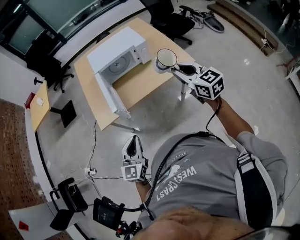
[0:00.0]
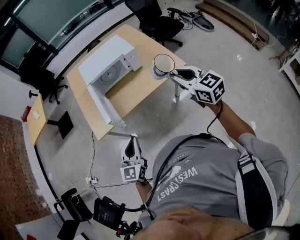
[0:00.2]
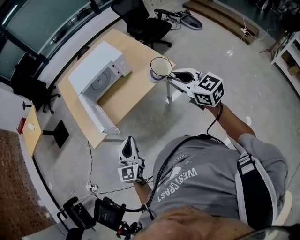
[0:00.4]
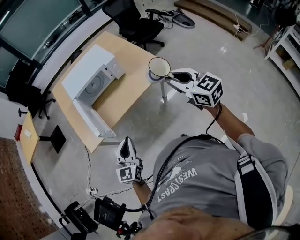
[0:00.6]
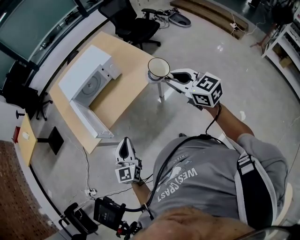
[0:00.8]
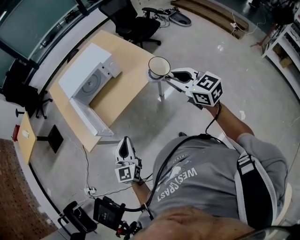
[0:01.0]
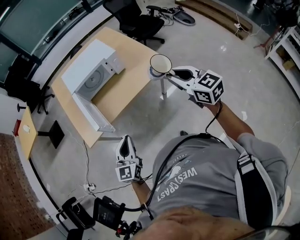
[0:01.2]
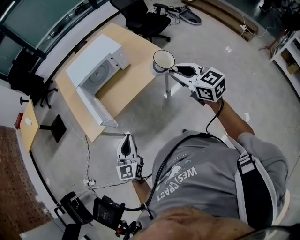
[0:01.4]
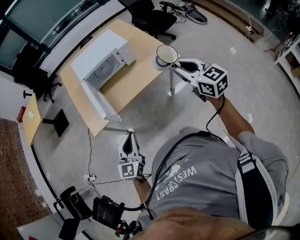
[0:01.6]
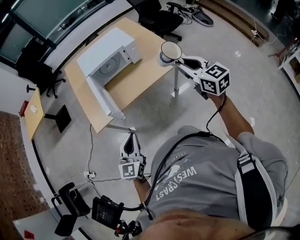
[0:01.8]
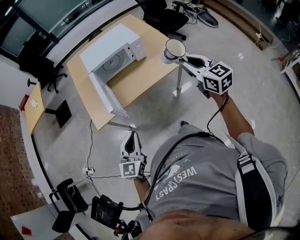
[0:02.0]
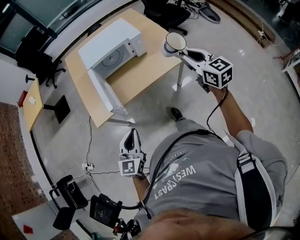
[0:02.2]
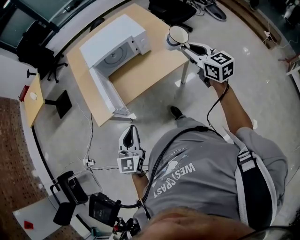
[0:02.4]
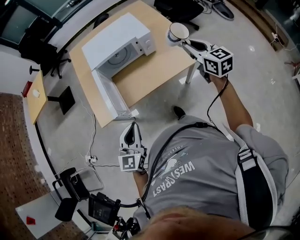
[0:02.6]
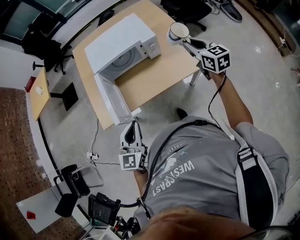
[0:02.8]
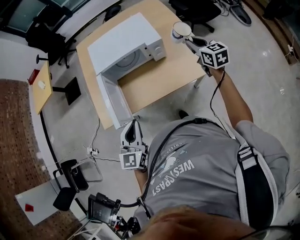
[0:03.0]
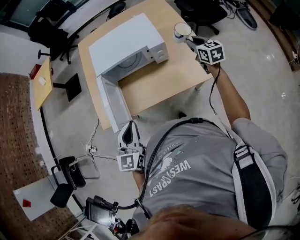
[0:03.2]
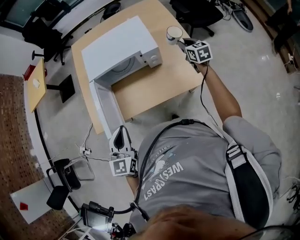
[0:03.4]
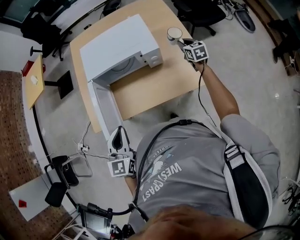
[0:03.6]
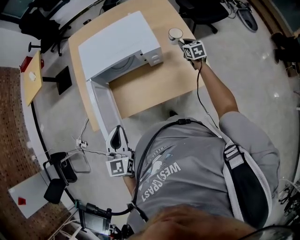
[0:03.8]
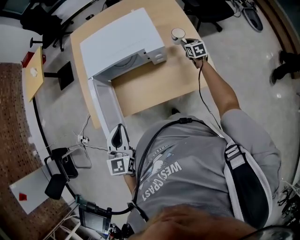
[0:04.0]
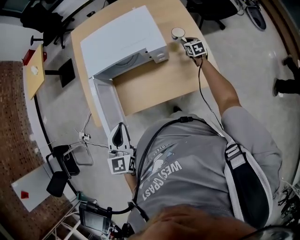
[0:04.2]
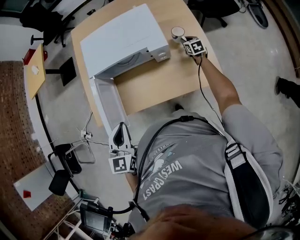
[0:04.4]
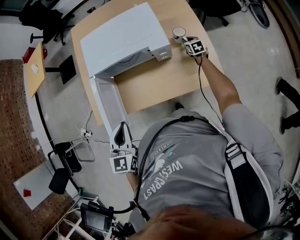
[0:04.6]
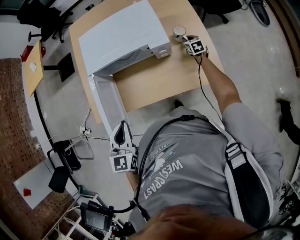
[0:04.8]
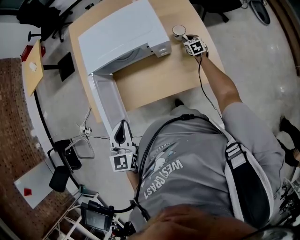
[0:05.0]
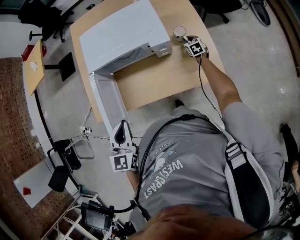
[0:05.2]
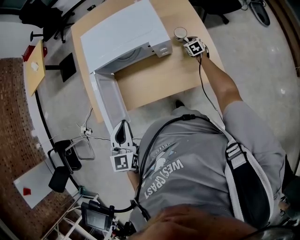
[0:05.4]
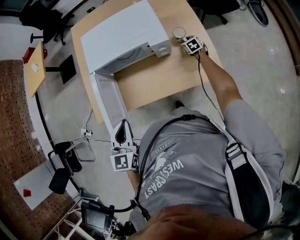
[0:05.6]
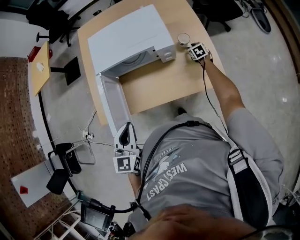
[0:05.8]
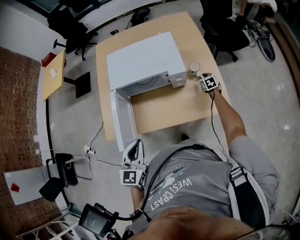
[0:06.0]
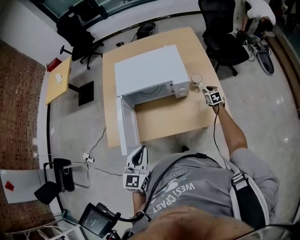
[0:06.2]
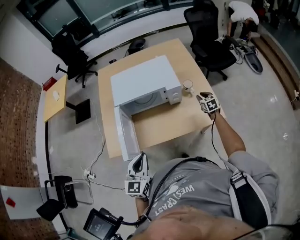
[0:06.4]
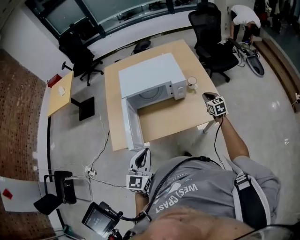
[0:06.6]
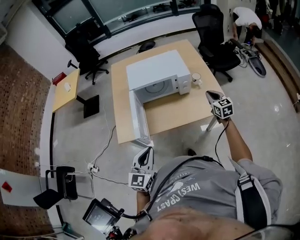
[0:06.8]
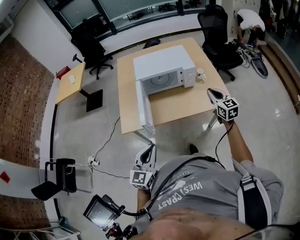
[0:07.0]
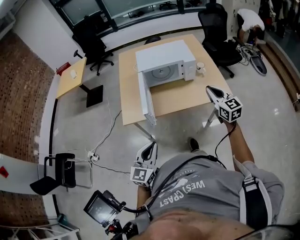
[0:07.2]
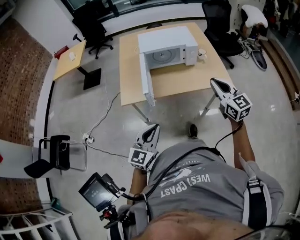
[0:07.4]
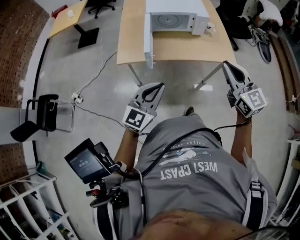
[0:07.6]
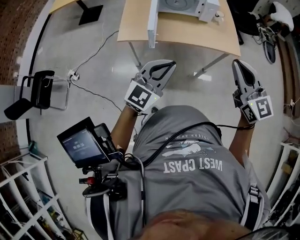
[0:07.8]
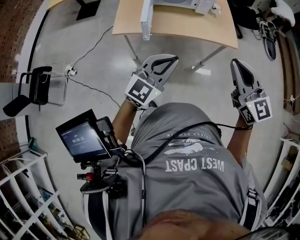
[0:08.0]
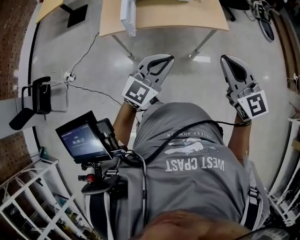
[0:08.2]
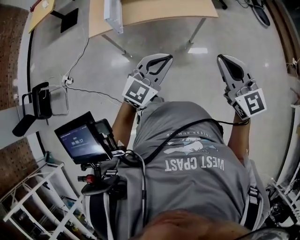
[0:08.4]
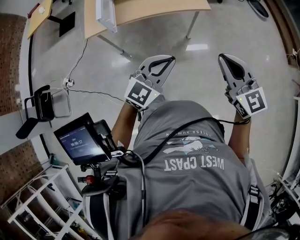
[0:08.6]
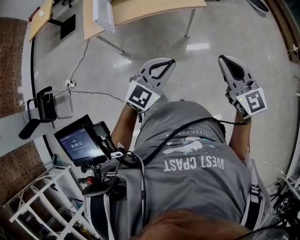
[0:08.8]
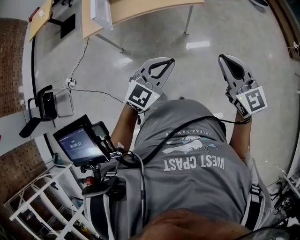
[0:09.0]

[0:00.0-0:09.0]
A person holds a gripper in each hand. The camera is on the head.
0:00.0 to 0:01.6: The right gripper is displaced to the right by roughly 5 cm.
0:01.6 to 0:03.0: The right gripper goes about 40 cm forward. The left gripper moves forward, some 20 cm.
0:03.0 to 0:04.4: The right gripper shifts some 40 cm downward and forward, and turns by roughly 20 degrees. The left gripper is displaced forward by approximately 15 cm.
0:04.4 to 0:06.0: The right gripper moves backward, approximately 5 cm.
0:06.0 to 0:07.6: The right gripper goes roughly 80 cm backward and upward, tilts its fingers some 50 degrees upward, and closes its fingers. Meanwhile the left gripper shifts some 35 cm backward, and changes its angle by roughly 20 degrees.
0:07.6 to 0:09.0: The left gripper is displaced to the right by approximately 20 cm, while the right gripper goes about 15 cm to the right and backward.

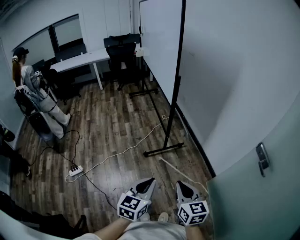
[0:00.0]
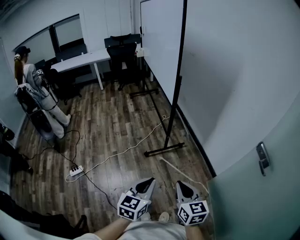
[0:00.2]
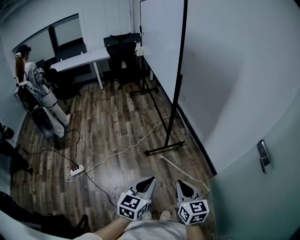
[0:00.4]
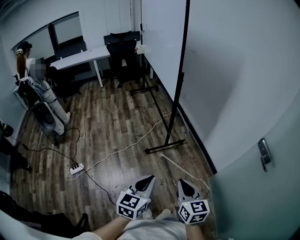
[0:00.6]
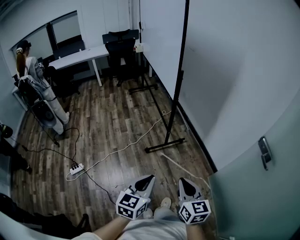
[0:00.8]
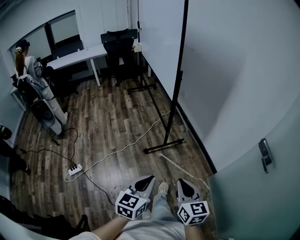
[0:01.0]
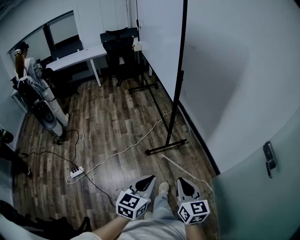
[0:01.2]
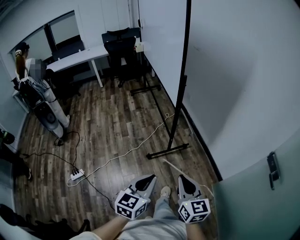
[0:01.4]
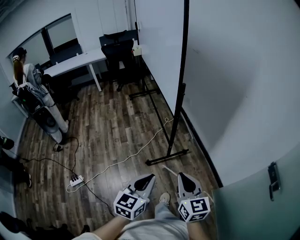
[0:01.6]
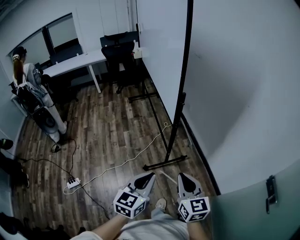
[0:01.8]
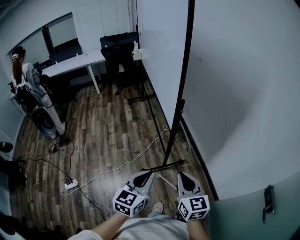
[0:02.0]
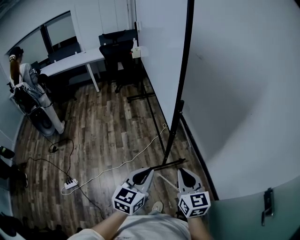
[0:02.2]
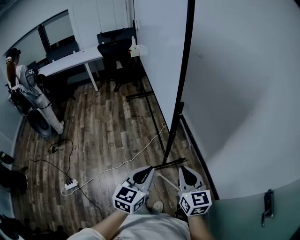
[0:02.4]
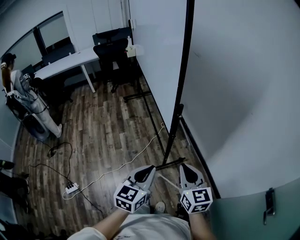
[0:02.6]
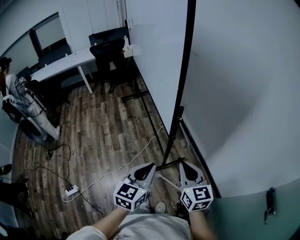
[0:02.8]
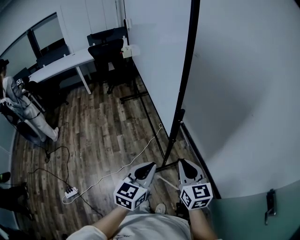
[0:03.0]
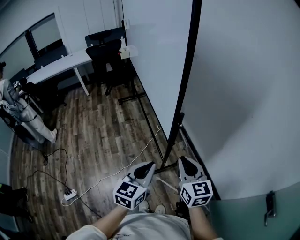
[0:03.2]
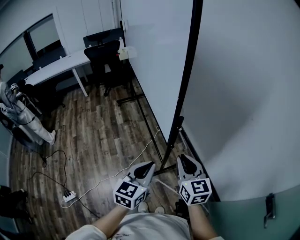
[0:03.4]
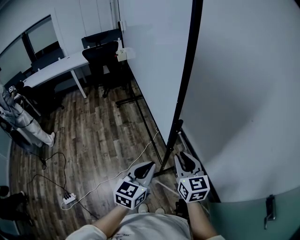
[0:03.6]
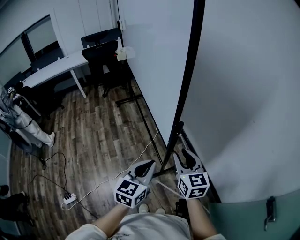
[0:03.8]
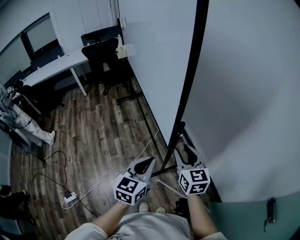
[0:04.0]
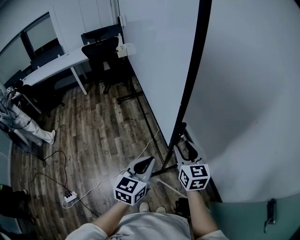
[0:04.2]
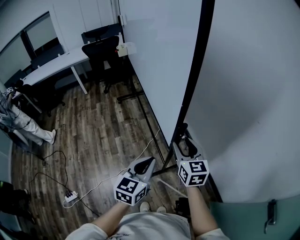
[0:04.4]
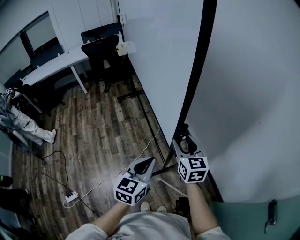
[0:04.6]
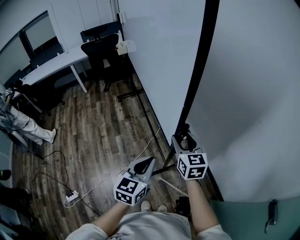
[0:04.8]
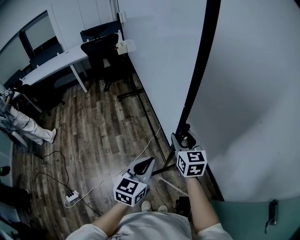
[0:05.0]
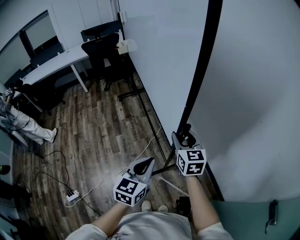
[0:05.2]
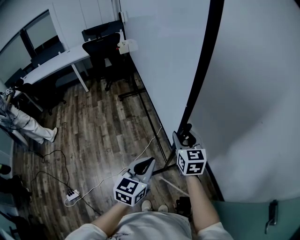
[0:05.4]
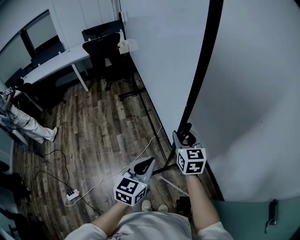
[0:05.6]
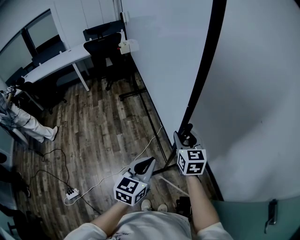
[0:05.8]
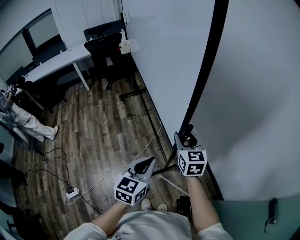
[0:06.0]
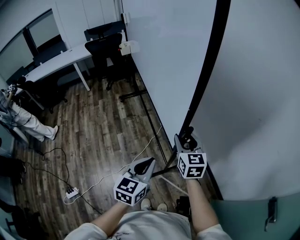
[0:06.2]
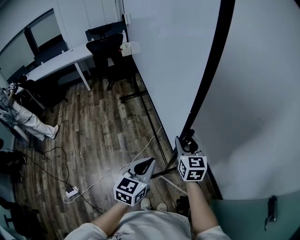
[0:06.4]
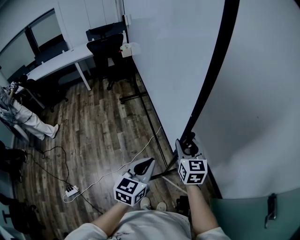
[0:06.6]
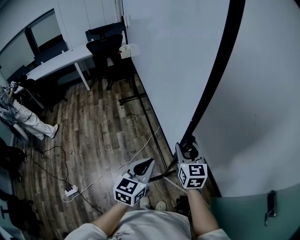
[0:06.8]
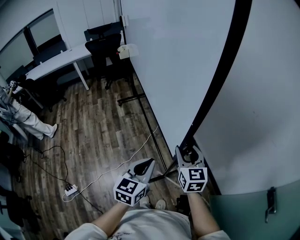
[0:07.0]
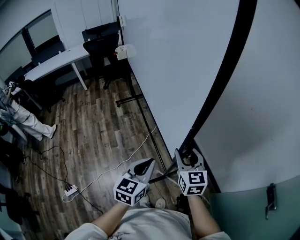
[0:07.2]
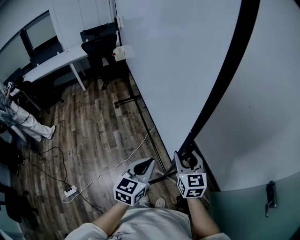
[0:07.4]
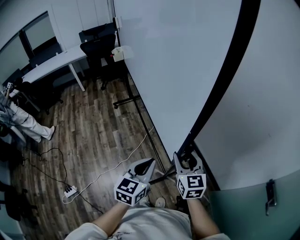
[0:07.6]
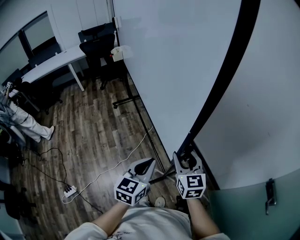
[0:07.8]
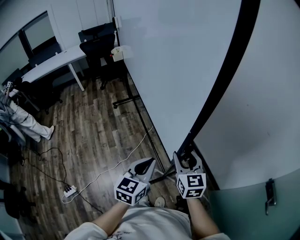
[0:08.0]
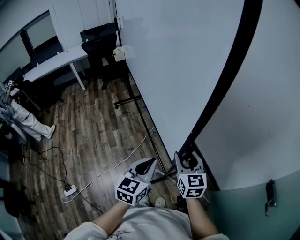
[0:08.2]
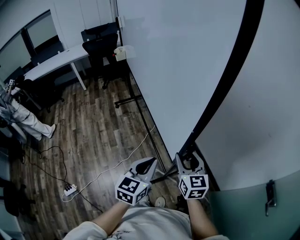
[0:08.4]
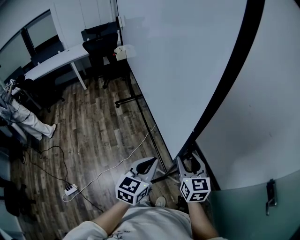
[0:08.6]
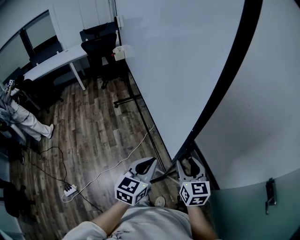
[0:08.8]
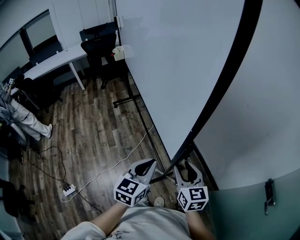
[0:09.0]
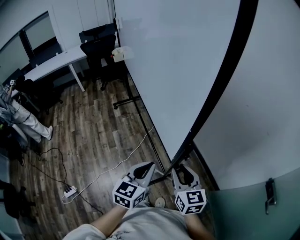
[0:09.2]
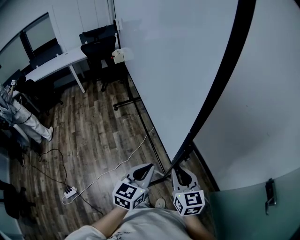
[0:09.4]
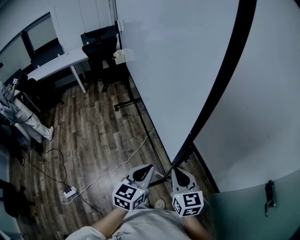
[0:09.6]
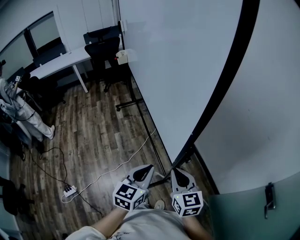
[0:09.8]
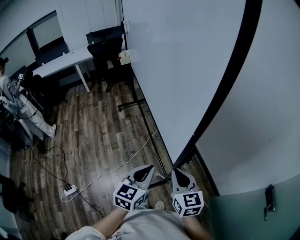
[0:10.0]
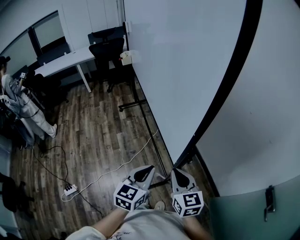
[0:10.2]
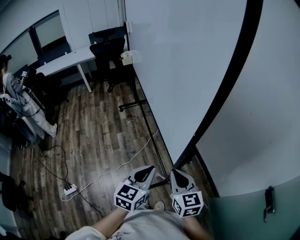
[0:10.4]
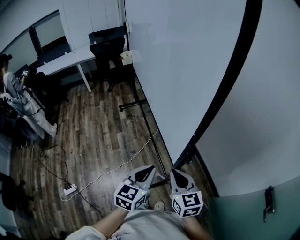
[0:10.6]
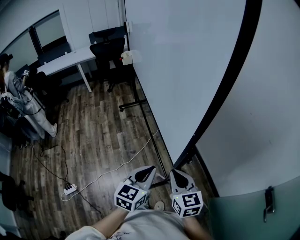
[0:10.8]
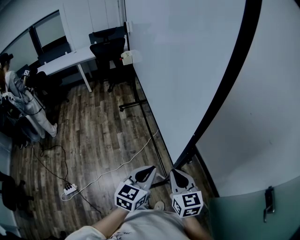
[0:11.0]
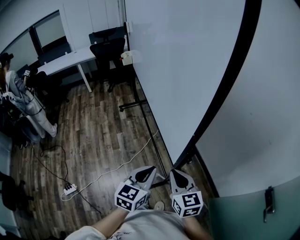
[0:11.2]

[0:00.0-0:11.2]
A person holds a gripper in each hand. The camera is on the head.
0:00.0 to 0:01.6: Both grippers travel together forward, roughly 20 cm.
0:01.6 to 0:03.2: Both grippers move forward, some 25 cm.
0:03.2 to 0:04.8: The right gripper goes some 15 cm forward, and opens its fingers. Meanwhile the left gripper moves forward, some 10 cm.
0:04.8 to 0:06.4: The grippers move only a little.
0:06.4 to 0:08.0: The left gripper is displaced backward by about 5 cm, while the right gripper heads backward, covering approximately 15 cm.
0:08.0 to 0:09.6: The right gripper shifts approximately 10 cm backward, and closes up.
0:09.6 to 0:11.2: The grippers move only a little.

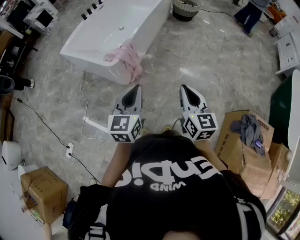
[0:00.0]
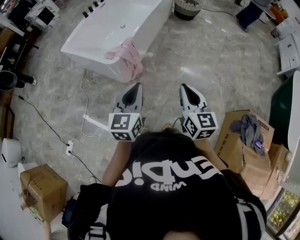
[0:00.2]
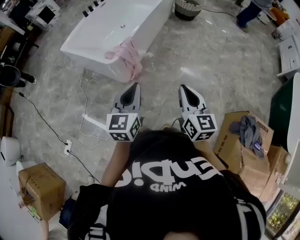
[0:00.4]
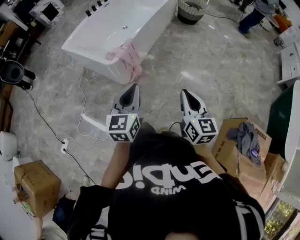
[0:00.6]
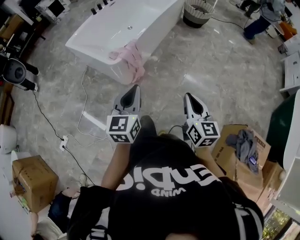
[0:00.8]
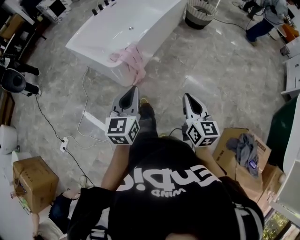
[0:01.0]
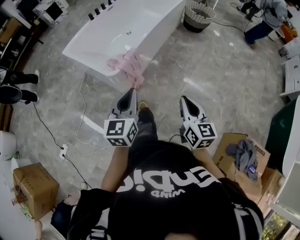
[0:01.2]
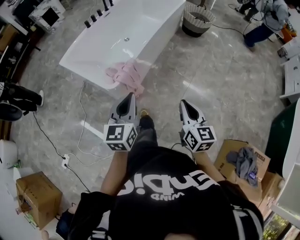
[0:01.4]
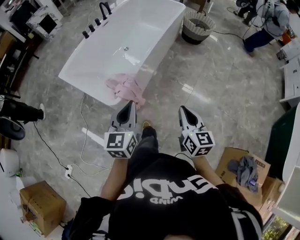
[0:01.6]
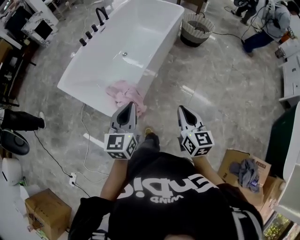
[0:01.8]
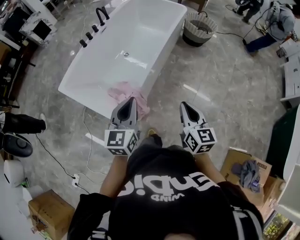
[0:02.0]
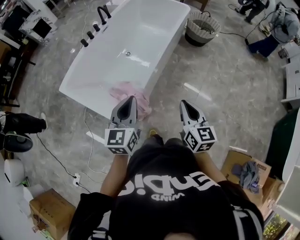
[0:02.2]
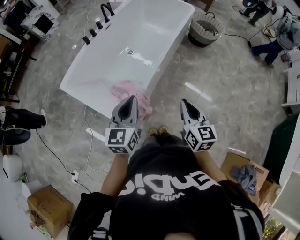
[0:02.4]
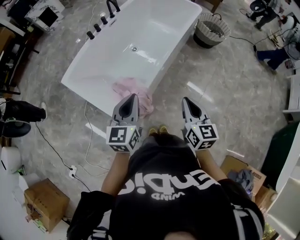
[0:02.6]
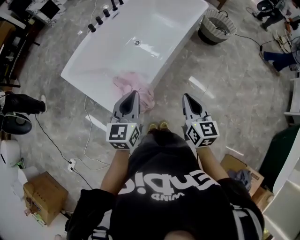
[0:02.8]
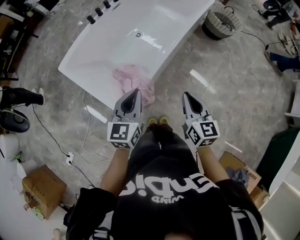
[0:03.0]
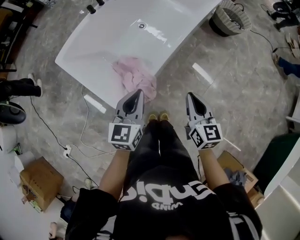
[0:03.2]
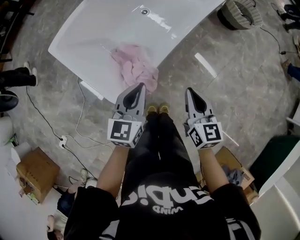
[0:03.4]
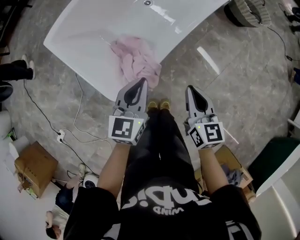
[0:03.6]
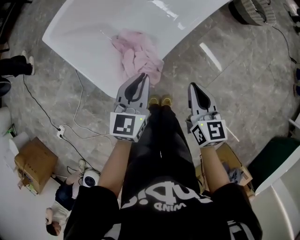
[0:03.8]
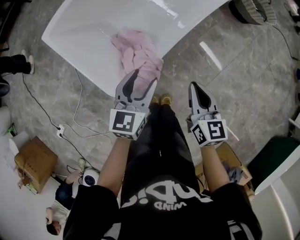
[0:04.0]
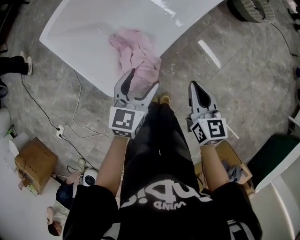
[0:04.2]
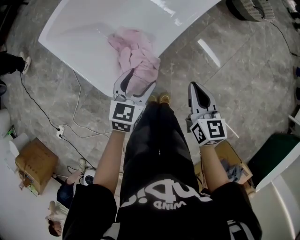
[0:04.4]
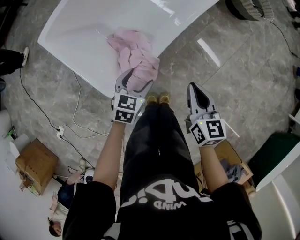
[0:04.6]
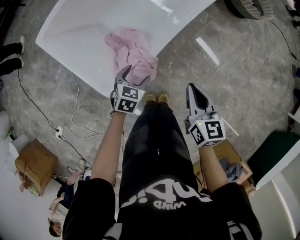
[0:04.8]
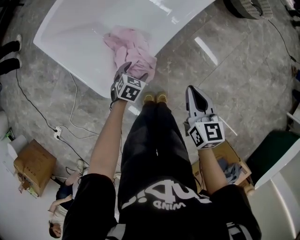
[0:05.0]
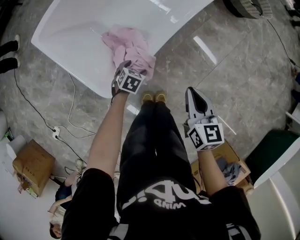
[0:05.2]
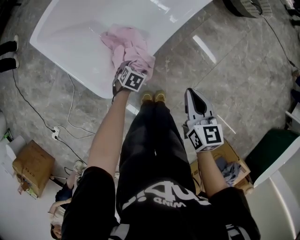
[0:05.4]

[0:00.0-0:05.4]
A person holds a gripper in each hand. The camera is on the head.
0:00.0 to 0:01.4: The two grippers go some 20 cm forward.
0:01.4 to 0:02.8: The two grippers go roughly 30 cm forward.
0:02.8 to 0:04.0: The grippers both shift downward by about 20 cm. The left gripper opens.
0:04.0 to 0:05.4: The left gripper shifts some 30 cm downward, and tilts its fingers approximately 50 degrees downward.
